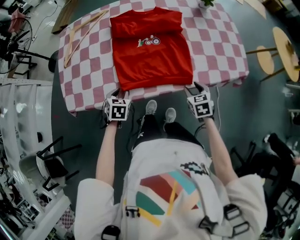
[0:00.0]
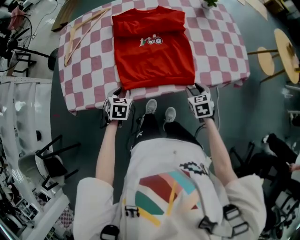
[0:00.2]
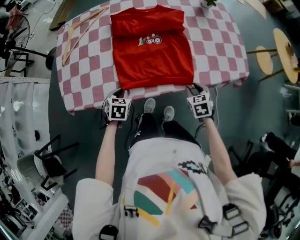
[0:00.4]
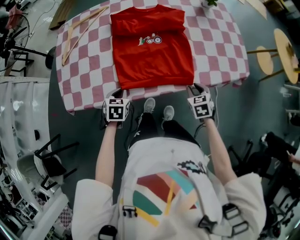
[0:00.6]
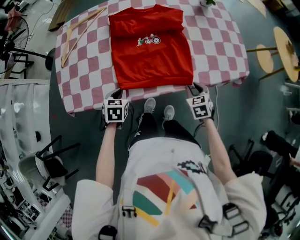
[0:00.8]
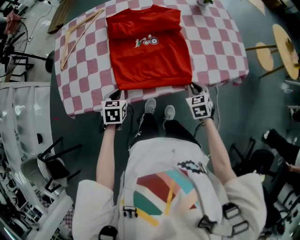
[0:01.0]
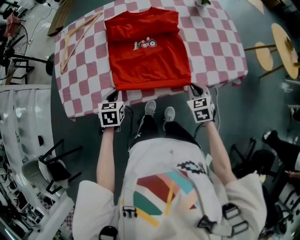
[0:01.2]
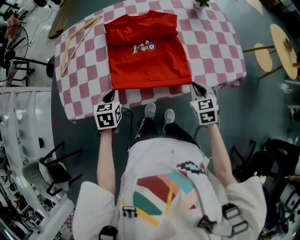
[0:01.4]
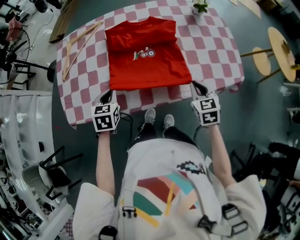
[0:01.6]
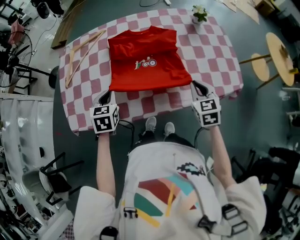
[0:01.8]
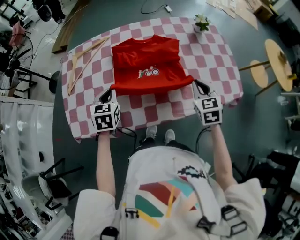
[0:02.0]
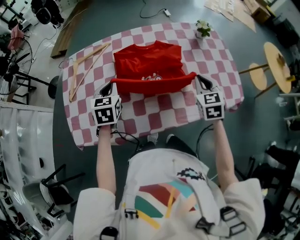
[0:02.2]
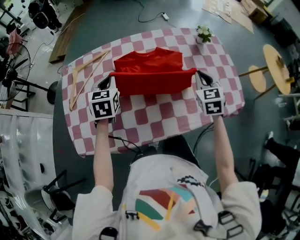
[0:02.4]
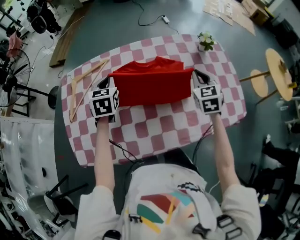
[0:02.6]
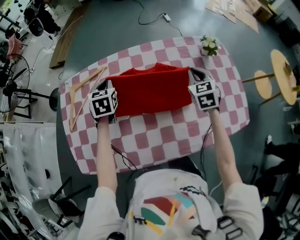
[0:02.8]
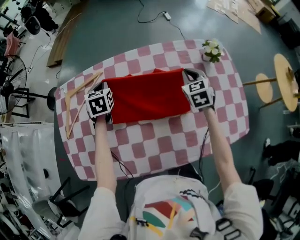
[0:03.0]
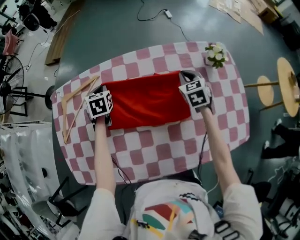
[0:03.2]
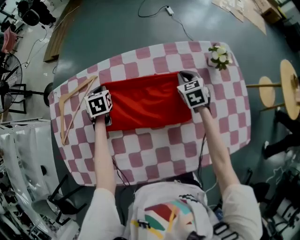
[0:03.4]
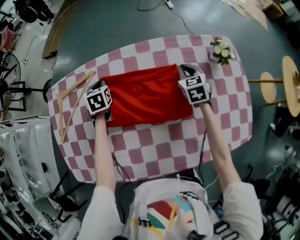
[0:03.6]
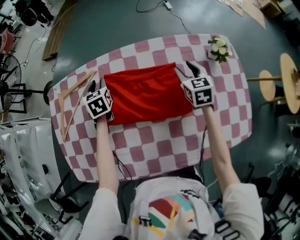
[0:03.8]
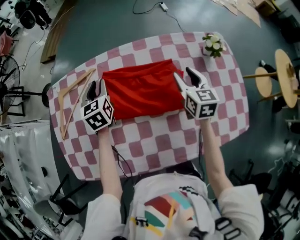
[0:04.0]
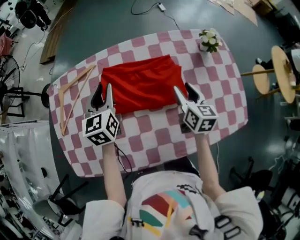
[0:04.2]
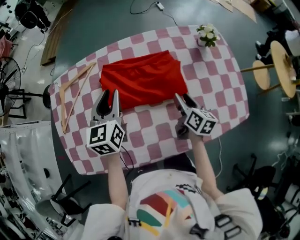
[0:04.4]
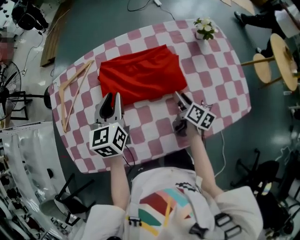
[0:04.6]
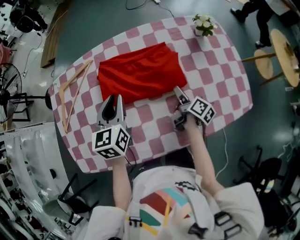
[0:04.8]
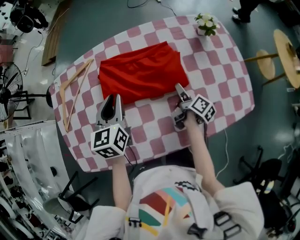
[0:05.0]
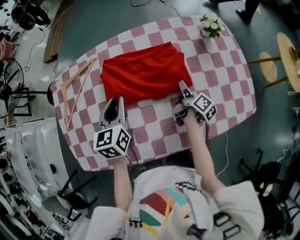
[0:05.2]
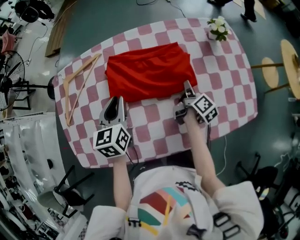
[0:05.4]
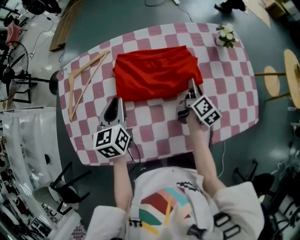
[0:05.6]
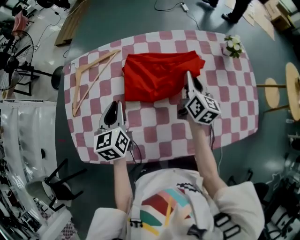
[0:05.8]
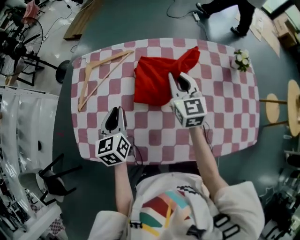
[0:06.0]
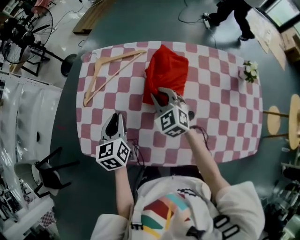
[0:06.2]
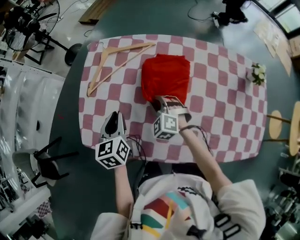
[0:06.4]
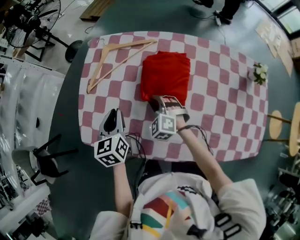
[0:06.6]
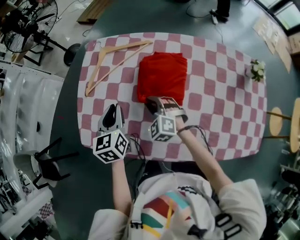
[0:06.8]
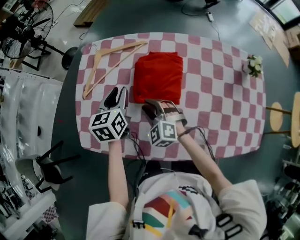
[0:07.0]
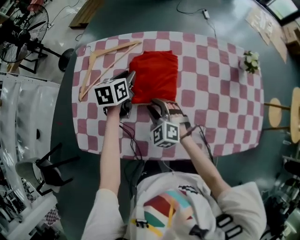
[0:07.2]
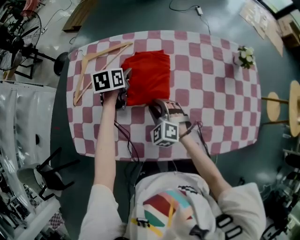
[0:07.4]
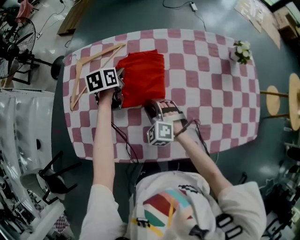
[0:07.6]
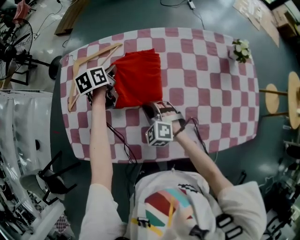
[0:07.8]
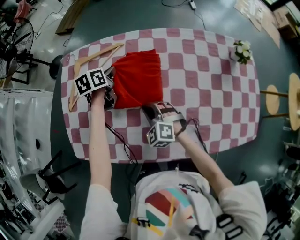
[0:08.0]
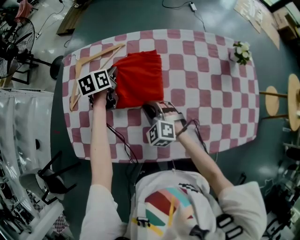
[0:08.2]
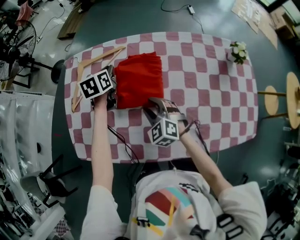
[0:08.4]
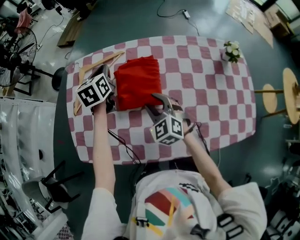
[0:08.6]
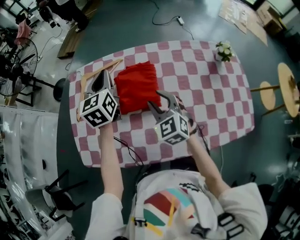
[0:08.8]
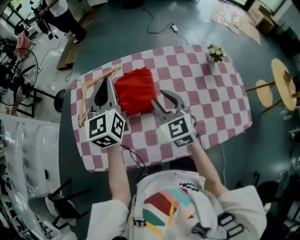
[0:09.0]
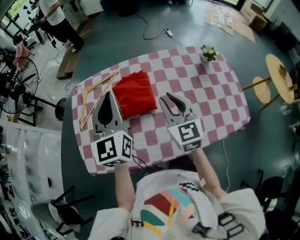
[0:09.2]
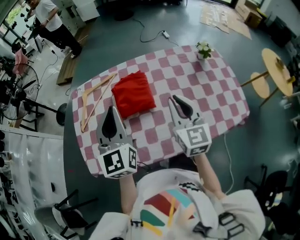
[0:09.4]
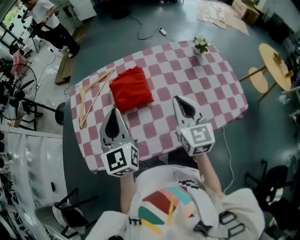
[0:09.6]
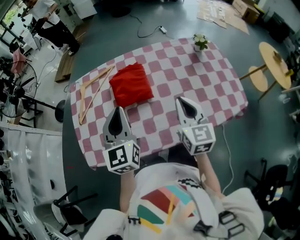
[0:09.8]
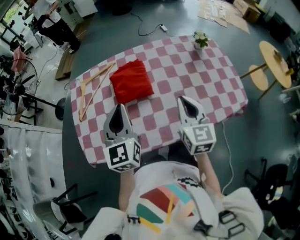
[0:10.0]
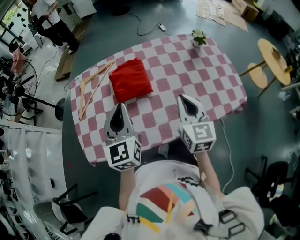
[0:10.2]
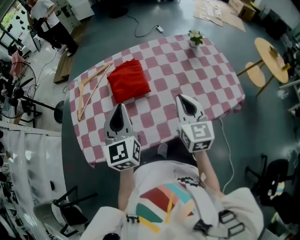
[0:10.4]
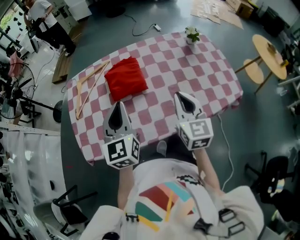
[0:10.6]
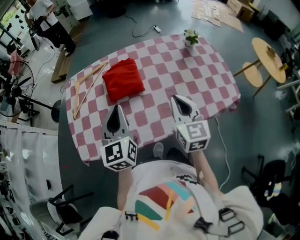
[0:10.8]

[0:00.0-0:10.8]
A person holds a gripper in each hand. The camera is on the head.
0:00.0 to 0:01.6: The two grippers go about 10 cm upward and forward. The right gripper closes up. Meanwhile the left gripper closes up.
0:01.6 to 0:03.0: The grippers both shift forward by some 40 cm.
0:03.0 to 0:04.6: The left gripper goes approximately 20 cm backward, upward and to the right, and turns by about 30 degrees, while the right gripper moves backward and downward, approximately 20 cm, rotates around the line of its fingers by approximately 70 degrees, clockwise from behind, and opens its fingers.
0:04.6 to 0:06.2: The left gripper shifts by roughly 20 cm, and rotates some 30 degrees, while the right gripper shifts by about 30 cm, rolls counterclockwise, seen from behind, by some 100 degrees, and closes its fingers.
0:06.2 to 0:07.8: The right gripper shifts about 10 cm downward; the left gripper changes place by approximately 25 cm, and turns by about 30 degrees.
0:07.8 to 0:09.2: The left gripper travels upward and backward by about 35 cm, and points its fingers roughly 40 degrees further upward; the right gripper shifts about 25 cm upward, and tilts its fingers approximately 30 degrees upward.
0:09.2 to 0:10.8: The left gripper heads backward and downward, covering approximately 15 cm; the right gripper travels backward and to the right by some 15 cm.

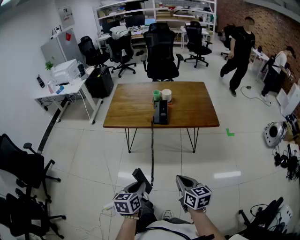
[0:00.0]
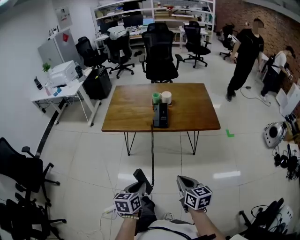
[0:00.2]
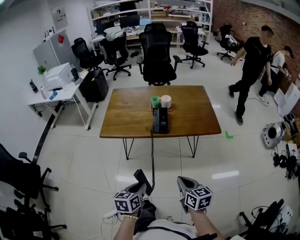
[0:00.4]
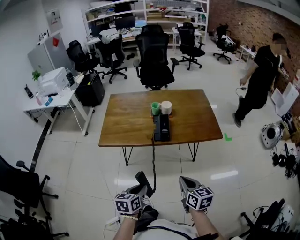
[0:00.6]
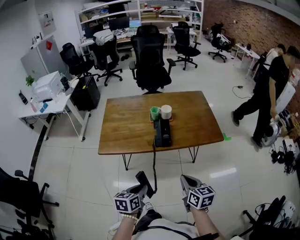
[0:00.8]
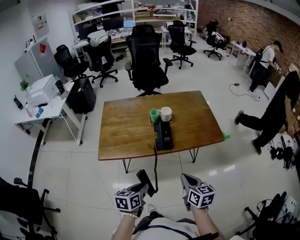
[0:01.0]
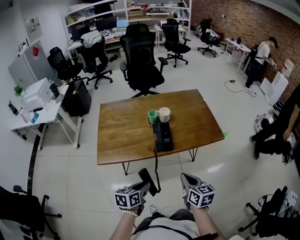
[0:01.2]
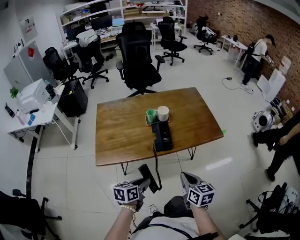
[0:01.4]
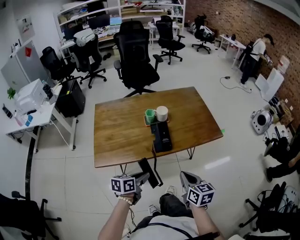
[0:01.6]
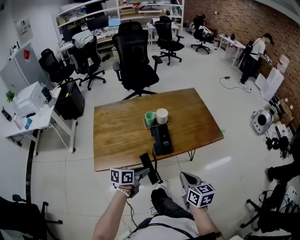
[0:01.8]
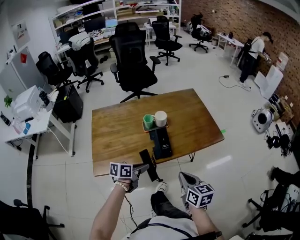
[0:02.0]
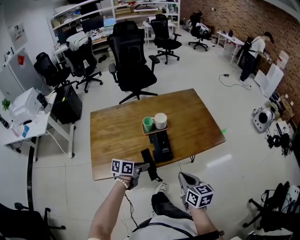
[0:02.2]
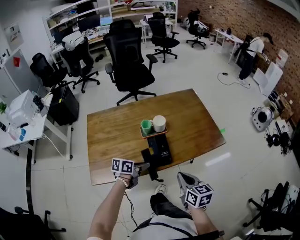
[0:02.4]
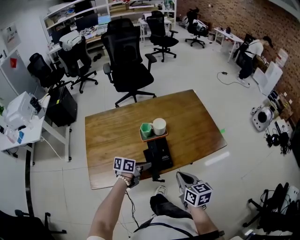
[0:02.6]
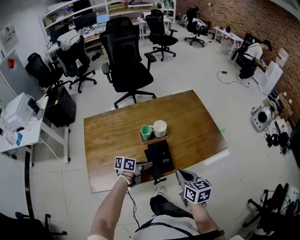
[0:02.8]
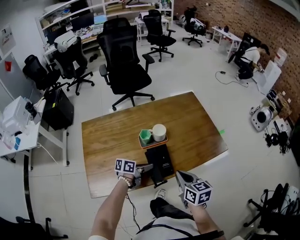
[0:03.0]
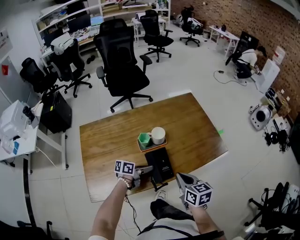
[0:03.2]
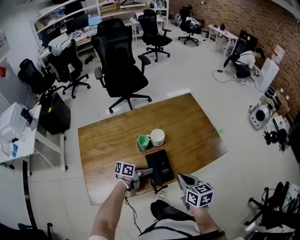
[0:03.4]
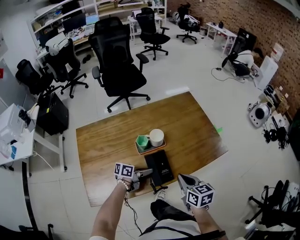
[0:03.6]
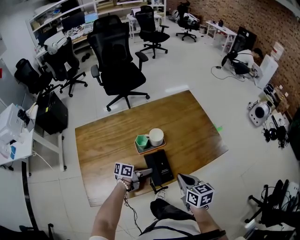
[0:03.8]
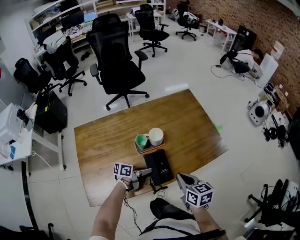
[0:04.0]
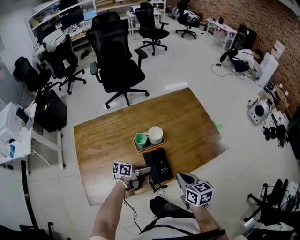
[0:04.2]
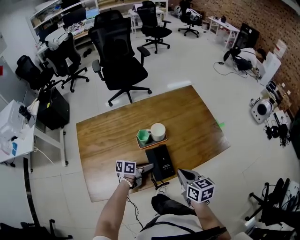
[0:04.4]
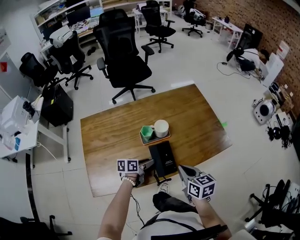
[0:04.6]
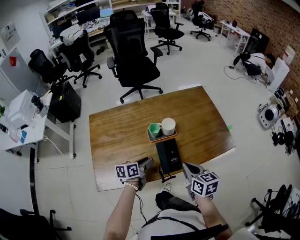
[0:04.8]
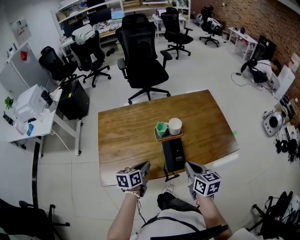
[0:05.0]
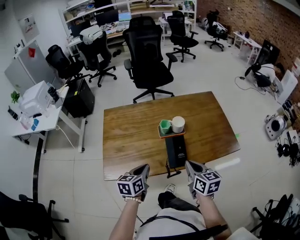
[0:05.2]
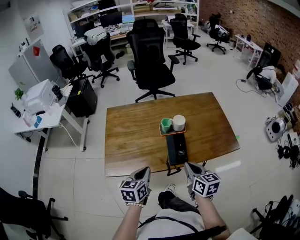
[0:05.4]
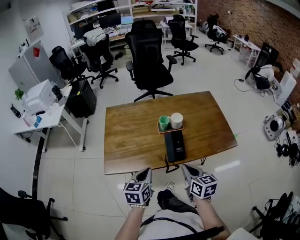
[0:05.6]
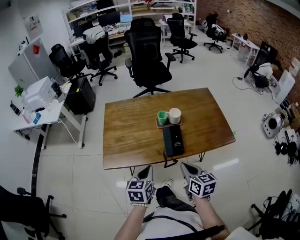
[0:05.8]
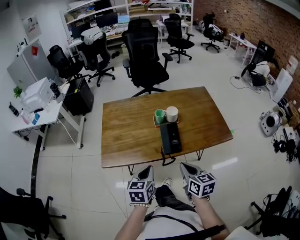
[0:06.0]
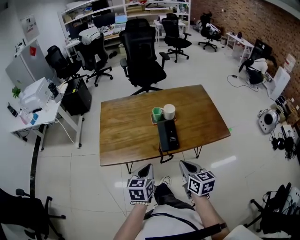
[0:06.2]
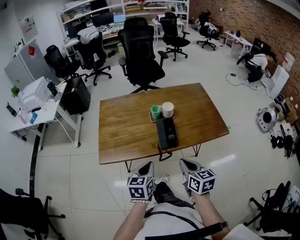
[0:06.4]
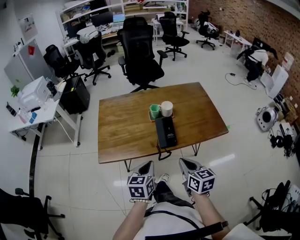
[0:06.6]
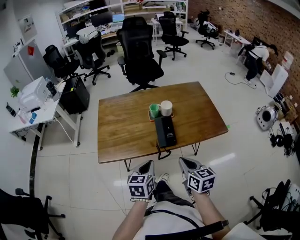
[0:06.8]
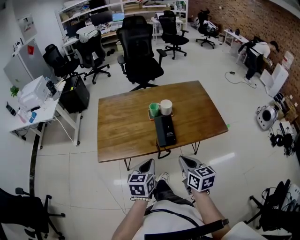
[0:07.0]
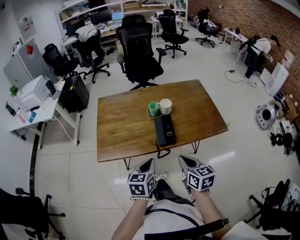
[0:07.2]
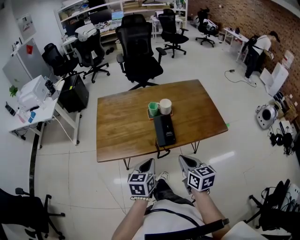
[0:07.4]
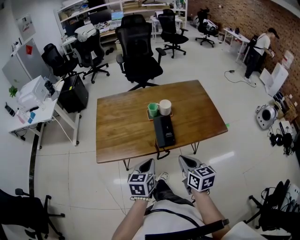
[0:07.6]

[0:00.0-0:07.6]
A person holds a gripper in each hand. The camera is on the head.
0:00.0 to 0:01.6: The left gripper changes place by about 30 cm, and changes its angle by about 40 degrees, while the right gripper ends up roughly 25 cm from where it was, and swivels some 20 degrees.
0:01.6 to 0:03.0: The right gripper heads forward and to the left, covering roughly 15 cm, while the left gripper travels forward by roughly 25 cm, and turns by about 20 degrees.
0:03.0 to 0:04.6: The left gripper opens.
0:04.6 to 0:06.0: The left gripper ends up about 25 cm from where it was, swivels approximately 50 degrees, and closes up, while the right gripper moves approximately 15 cm.
0:06.0 to 0:07.6: The grippers move only a little.

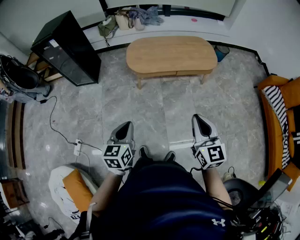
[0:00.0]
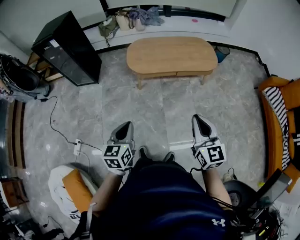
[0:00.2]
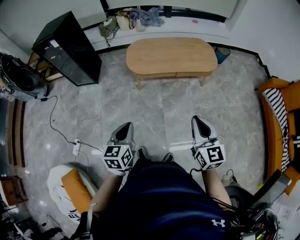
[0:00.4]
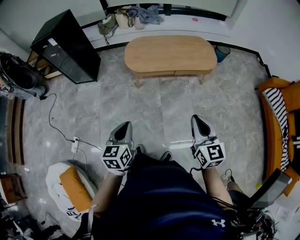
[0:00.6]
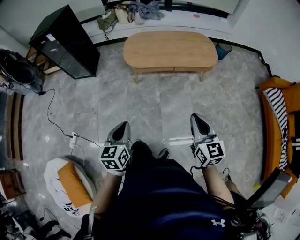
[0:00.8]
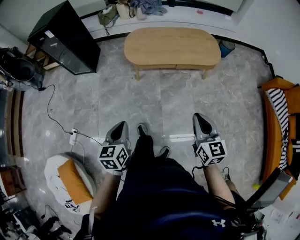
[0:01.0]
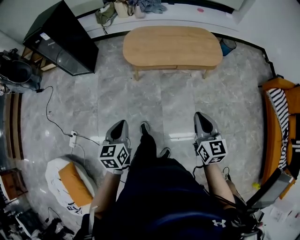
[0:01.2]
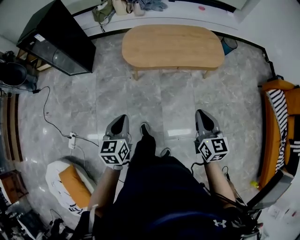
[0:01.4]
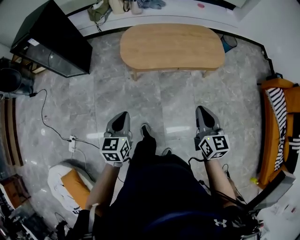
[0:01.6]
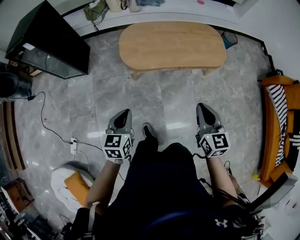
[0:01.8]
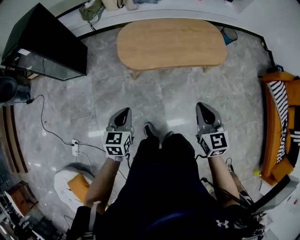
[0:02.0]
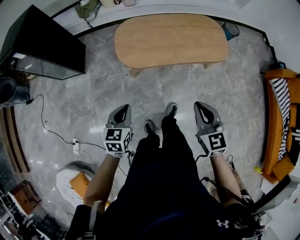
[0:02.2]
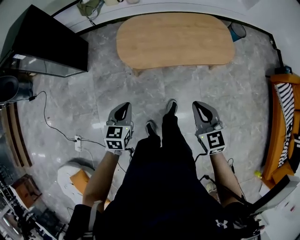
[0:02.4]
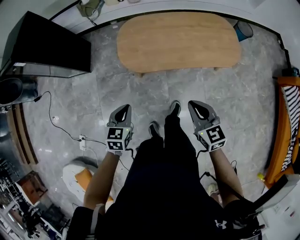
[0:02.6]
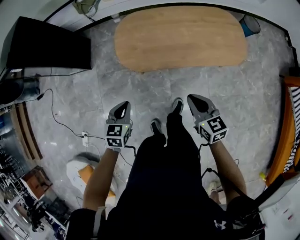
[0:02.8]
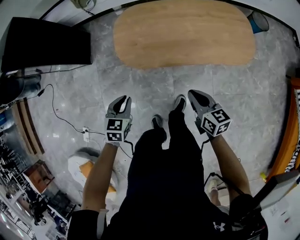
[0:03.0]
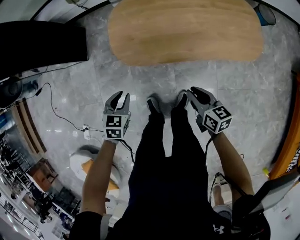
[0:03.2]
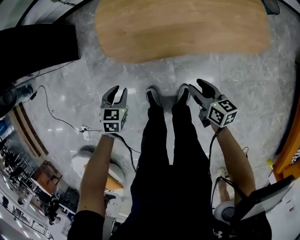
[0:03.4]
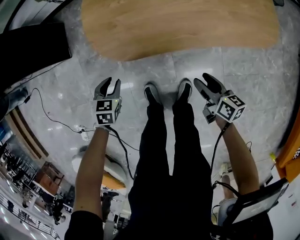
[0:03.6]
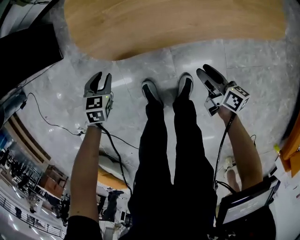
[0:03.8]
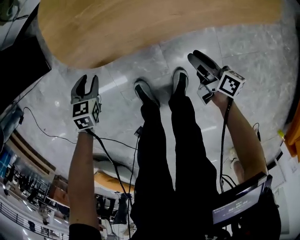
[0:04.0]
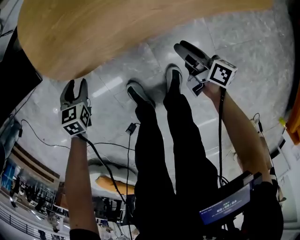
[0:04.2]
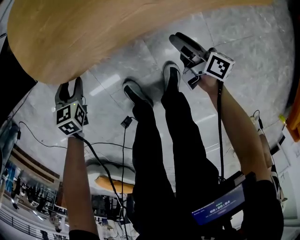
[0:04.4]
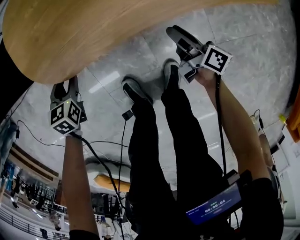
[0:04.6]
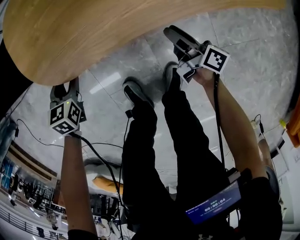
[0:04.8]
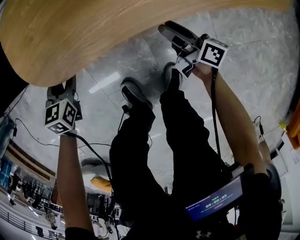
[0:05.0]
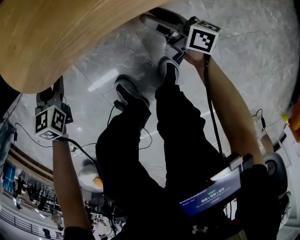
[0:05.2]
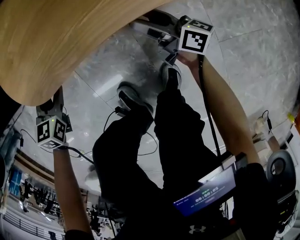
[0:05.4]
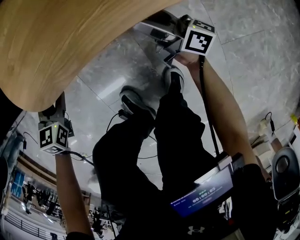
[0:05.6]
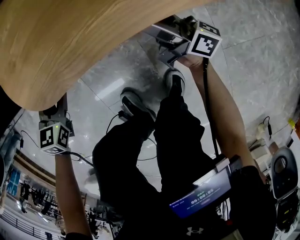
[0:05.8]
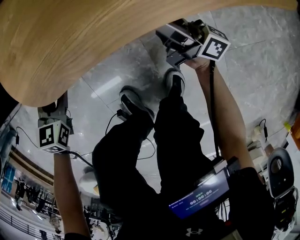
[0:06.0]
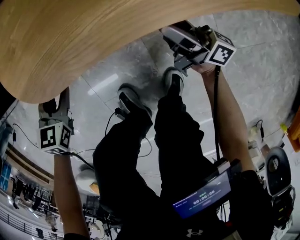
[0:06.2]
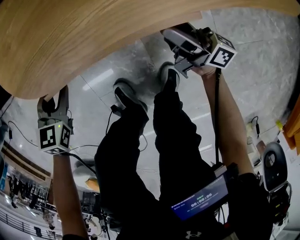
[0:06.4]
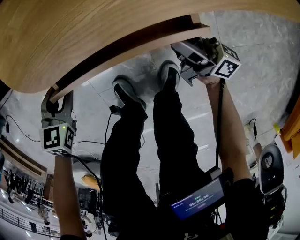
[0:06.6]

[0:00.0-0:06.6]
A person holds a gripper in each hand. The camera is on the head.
0:00.0 to 0:01.6: The left gripper is displaced forward by some 20 cm. The right gripper is displaced forward and downward by approximately 20 cm.
0:01.6 to 0:03.2: Both grippers move downward and forward, roughly 40 cm. The right gripper rotates roughly 40 degrees. Meanwhile the left gripper turns by approximately 30 degrees, and opens its fingers.
0:03.2 to 0:05.0: The right gripper travels downward by some 35 cm, swivels some 40 degrees, and opens, while the left gripper heads downward and forward, covering about 35 cm.
0:05.0 to 0:06.6: The left gripper goes some 5 cm backward. Meanwhile the right gripper shifts roughly 5 cm upward, and turns by roughly 20 degrees.
